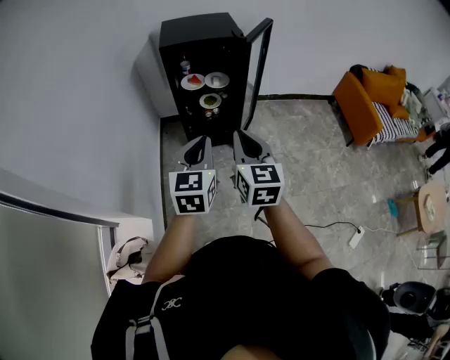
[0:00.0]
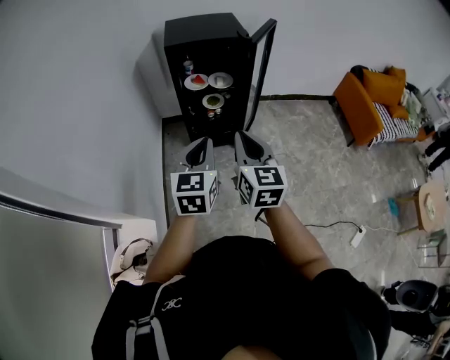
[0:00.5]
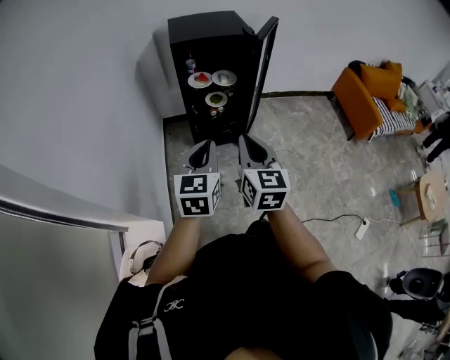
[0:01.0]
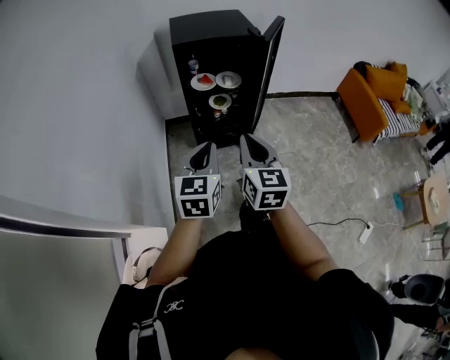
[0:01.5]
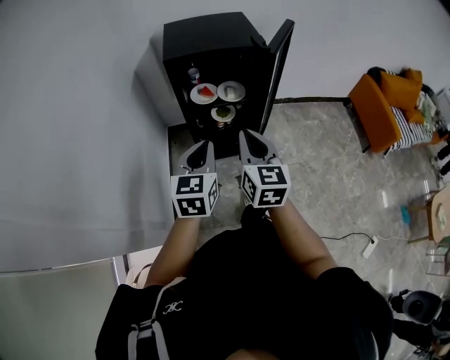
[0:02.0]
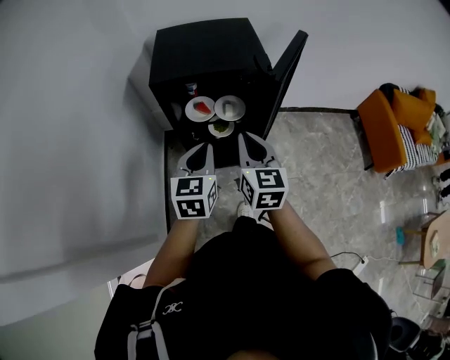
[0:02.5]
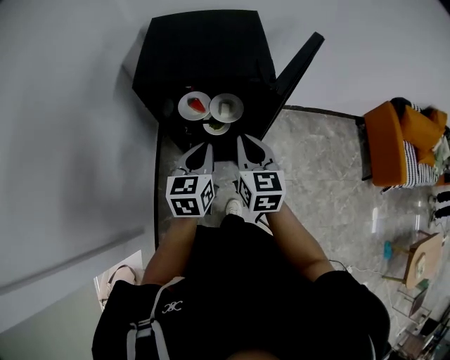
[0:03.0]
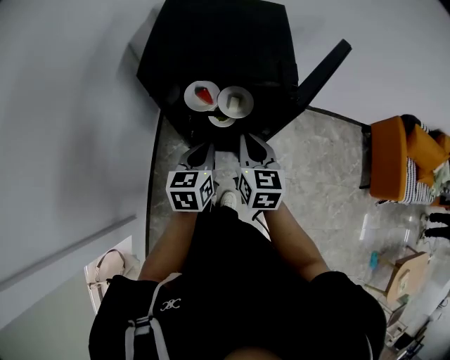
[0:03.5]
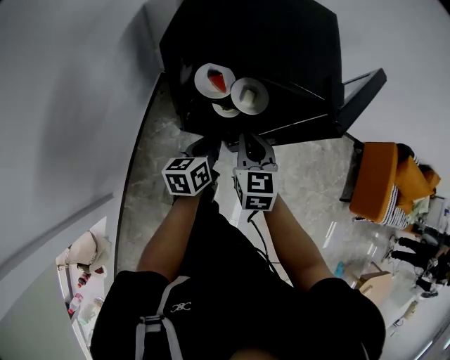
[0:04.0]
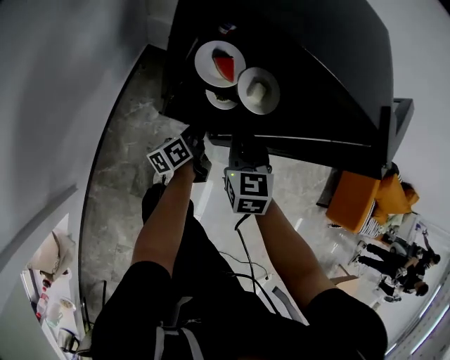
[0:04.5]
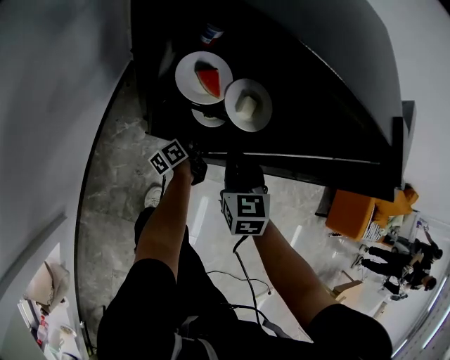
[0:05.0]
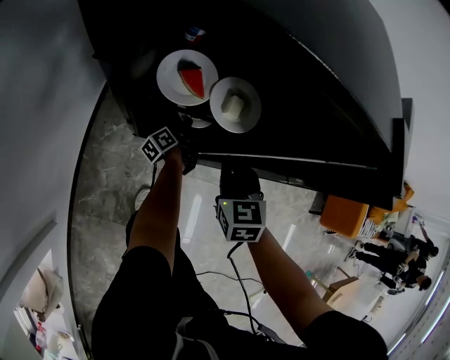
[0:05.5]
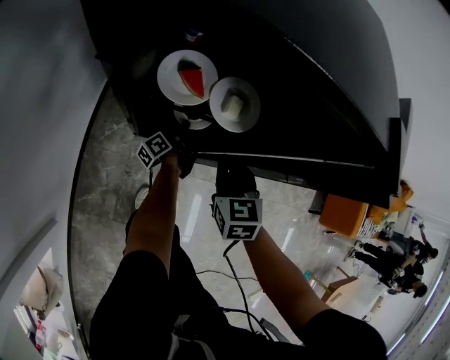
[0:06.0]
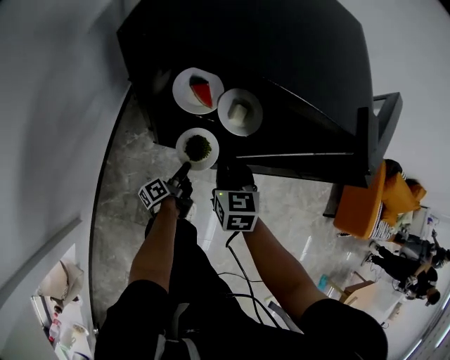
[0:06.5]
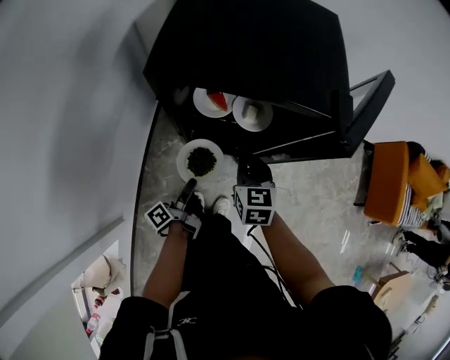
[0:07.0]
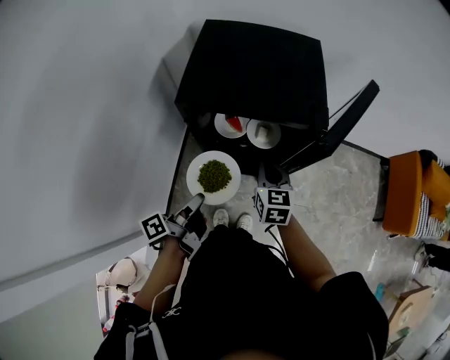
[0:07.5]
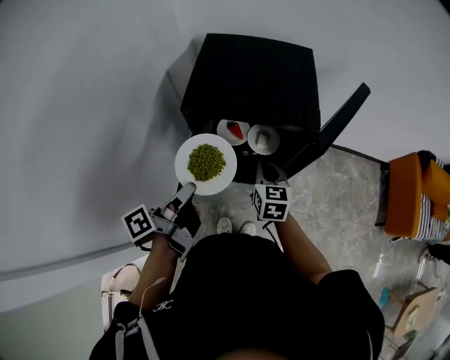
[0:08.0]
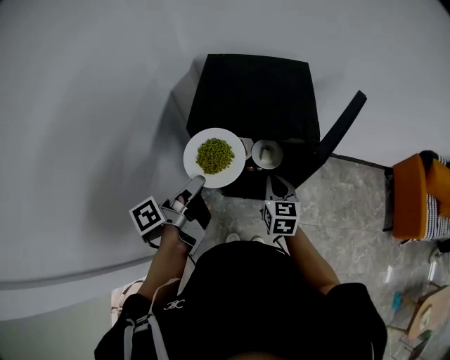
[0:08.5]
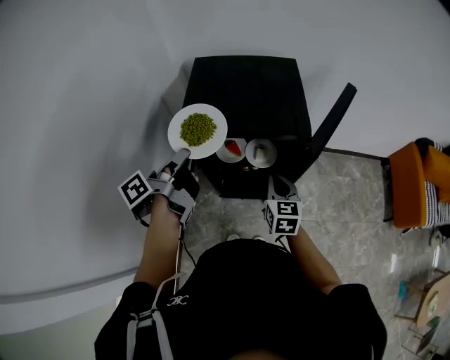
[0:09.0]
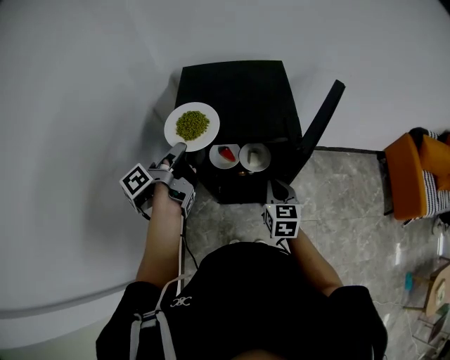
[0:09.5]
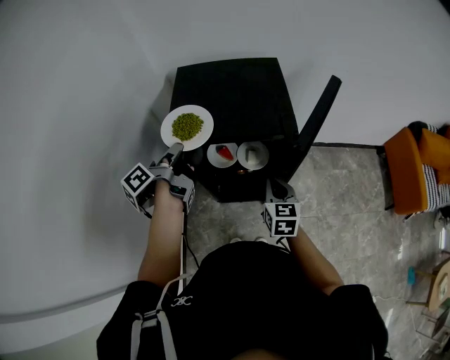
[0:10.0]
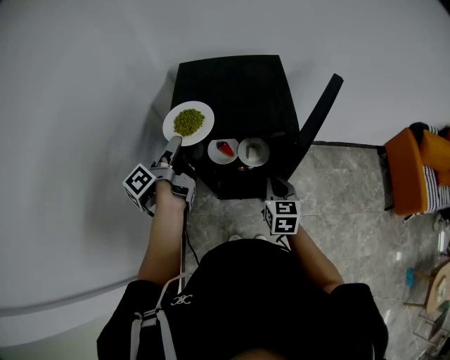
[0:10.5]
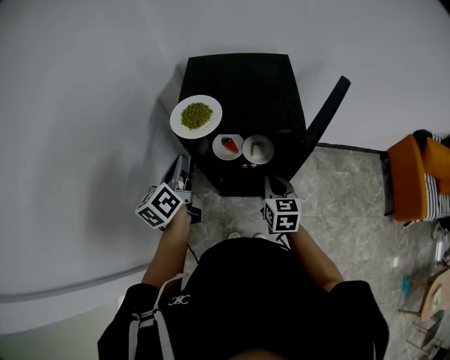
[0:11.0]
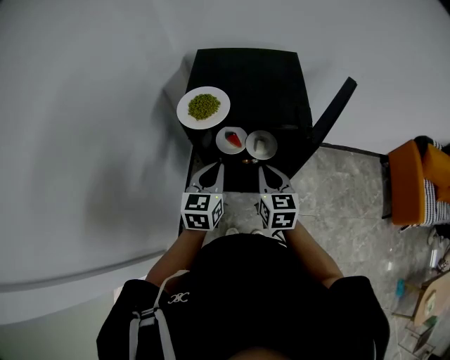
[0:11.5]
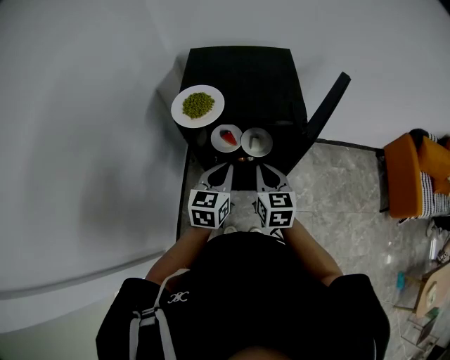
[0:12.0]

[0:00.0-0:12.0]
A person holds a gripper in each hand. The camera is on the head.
0:00.0 to 0:02.0: The grippers both shift forward by roughly 15 cm.
0:02.0 to 0:04.0: Both grippers move forward and downward, about 30 cm. The right gripper turns by approximately 30 degrees; the left gripper rotates around the line of its fingers by about 40 degrees, counterclockwise from behind.
0:04.0 to 0:06.0: The left gripper moves downward and forward, roughly 35 cm, rotates around the line of its fingers by some 50 degrees, counterclockwise from behind, and opens, then closes again. Meanwhile the right gripper goes about 15 cm downward.
0:06.0 to 0:08.0: The left gripper heads upward and backward, covering some 60 cm, while the right gripper is displaced upward by approximately 20 cm.
0:08.0 to 0:10.0: The left gripper heads forward, covering some 15 cm. The right gripper moves to the right, roughly 5 cm.
0:10.0 to 0:12.0: The right gripper moves to the left, approximately 5 cm. Meanwhile the left gripper goes some 15 cm to the right, backward and downward, rolls clockwise, seen from behind, by some 80 degrees, and opens, then closes again.

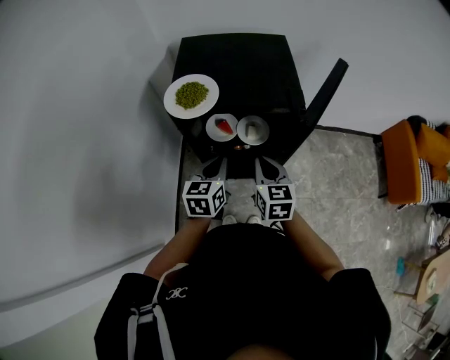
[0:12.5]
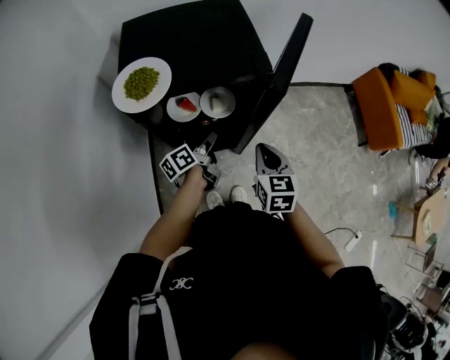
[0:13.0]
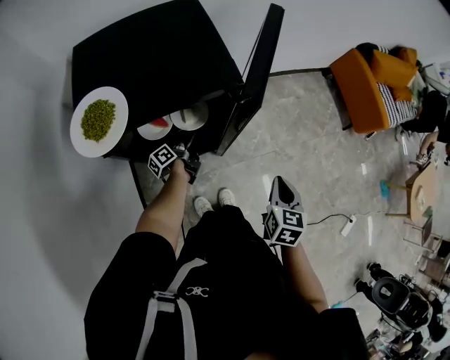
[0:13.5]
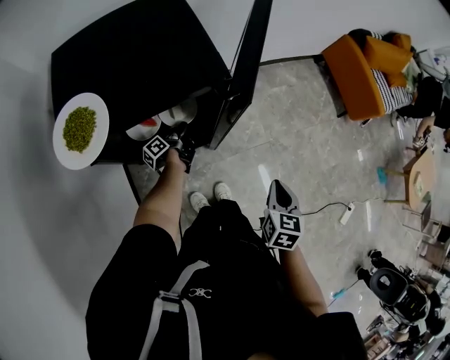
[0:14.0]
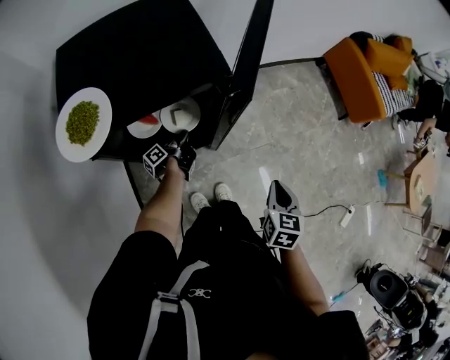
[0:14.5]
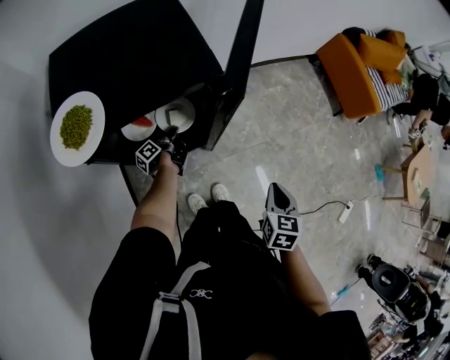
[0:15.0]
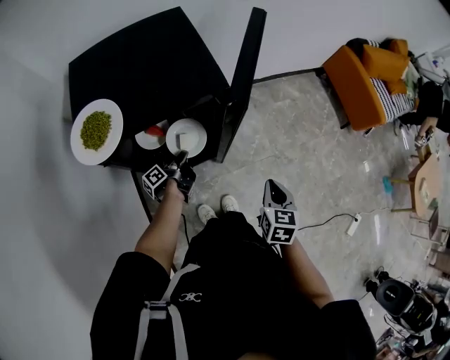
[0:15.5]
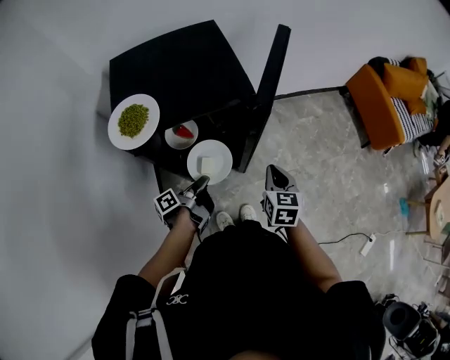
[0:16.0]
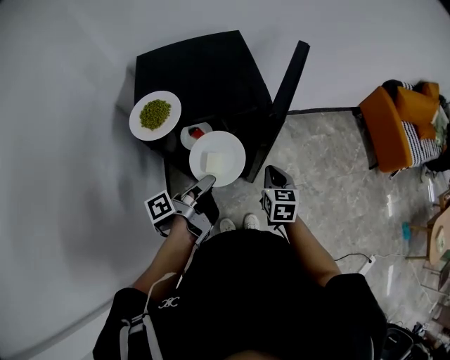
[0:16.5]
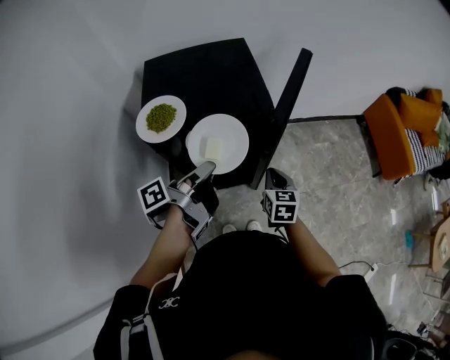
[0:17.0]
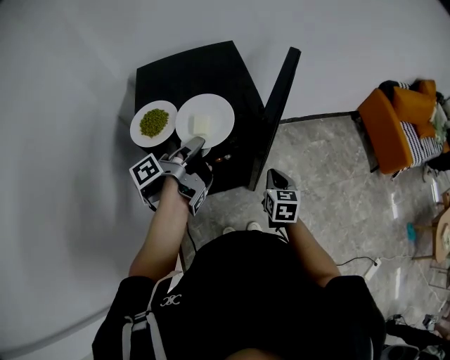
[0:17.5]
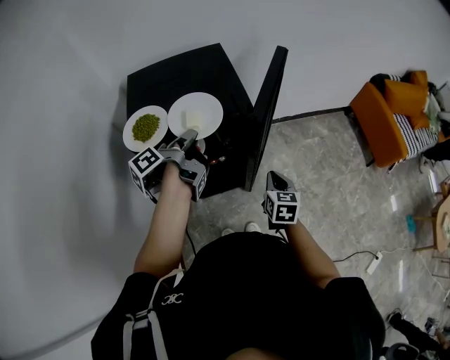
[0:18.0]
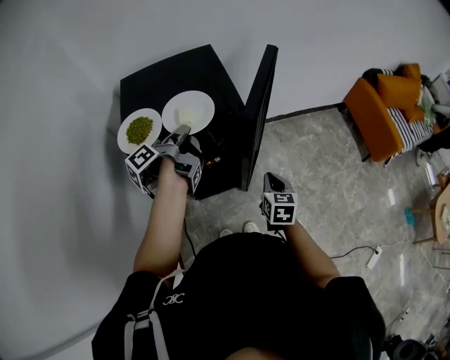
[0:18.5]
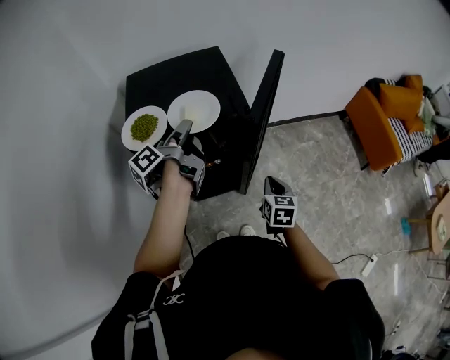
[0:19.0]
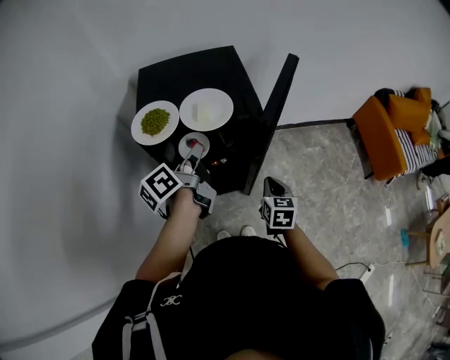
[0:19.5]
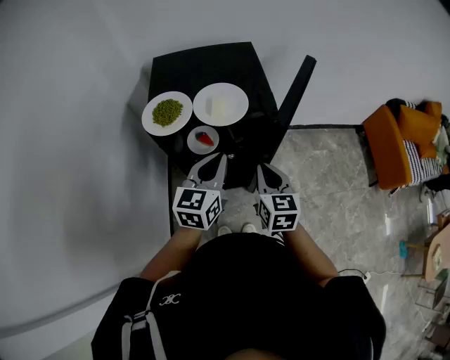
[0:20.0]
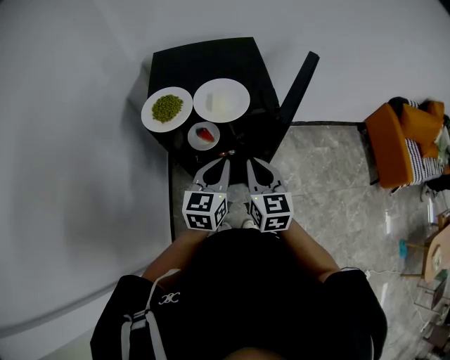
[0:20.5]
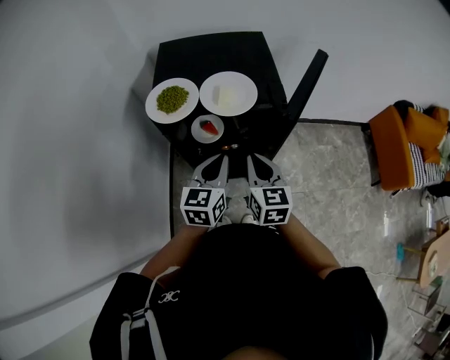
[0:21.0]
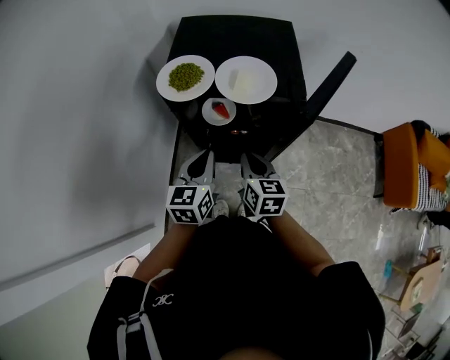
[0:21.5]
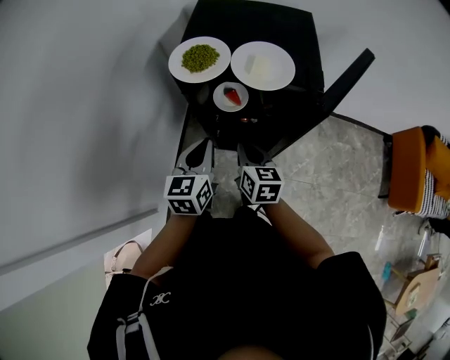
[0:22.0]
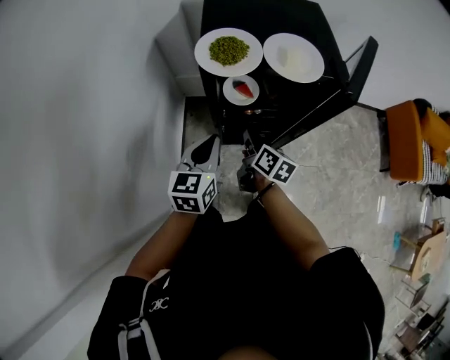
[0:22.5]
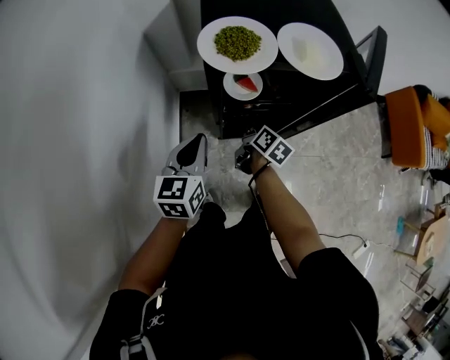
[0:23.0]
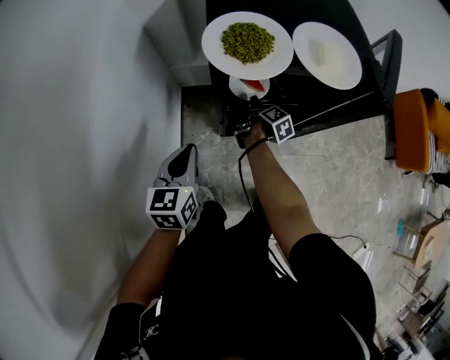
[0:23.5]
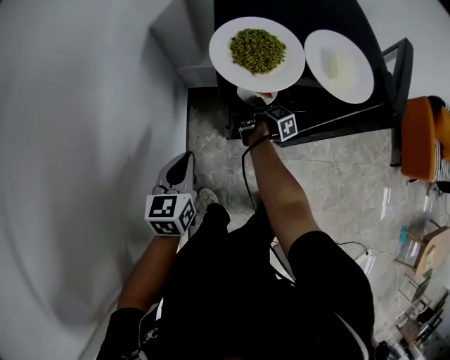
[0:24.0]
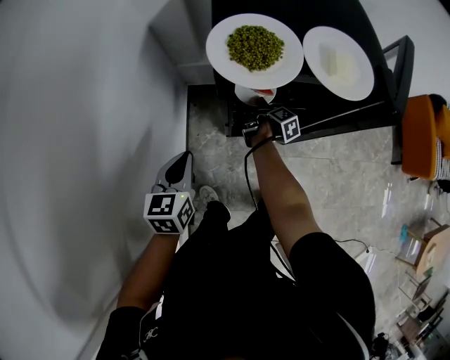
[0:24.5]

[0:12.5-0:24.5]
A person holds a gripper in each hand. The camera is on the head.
0:12.5 to 0:14.5: The right gripper moves roughly 25 cm, and changes its angle by about 40 degrees; the left gripper shifts roughly 30 cm downward, rotates around the line of its fingers by roughly 80 degrees, counterclockwise from behind, and opens and closes again.
0:14.5 to 0:16.5: The right gripper heads to the left and forward, covering approximately 15 cm, and turns by approximately 20 degrees, while the left gripper moves upward and backward, approximately 35 cm.
0:16.5 to 0:18.5: The left gripper moves forward and upward, approximately 15 cm, while the right gripper travels to the right by about 5 cm.
0:18.5 to 0:20.5: The right gripper travels to the left and upward by some 15 cm, and turns by roughly 30 degrees; the left gripper heads backward, covering about 10 cm, rotates around the line of its fingers by roughly 80 degrees, clockwise from behind, and opens and closes again.
0:20.5 to 0:22.5: The left gripper travels to the left by about 20 cm. The right gripper travels downward and to the left by roughly 20 cm, and rolls clockwise, seen from behind, by some 40 degrees.
0:22.5 to 0:24.5: The left gripper goes approximately 15 cm to the left and downward. Meanwhile the right gripper moves downward and forward, approximately 25 cm, rolls clockwise, seen from behind, by roughly 40 degrees, and opens up.

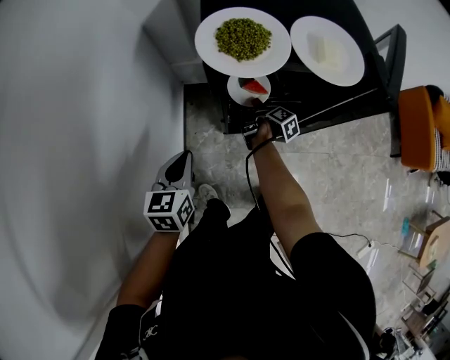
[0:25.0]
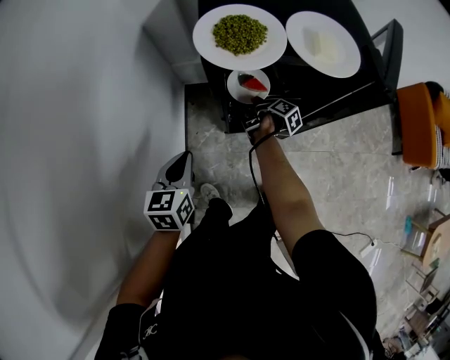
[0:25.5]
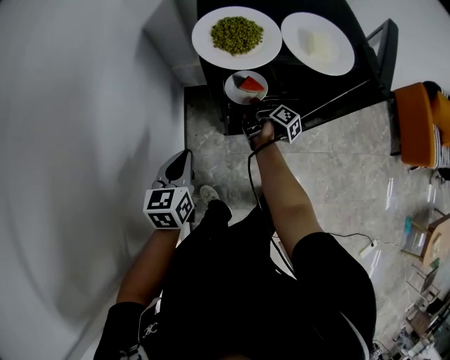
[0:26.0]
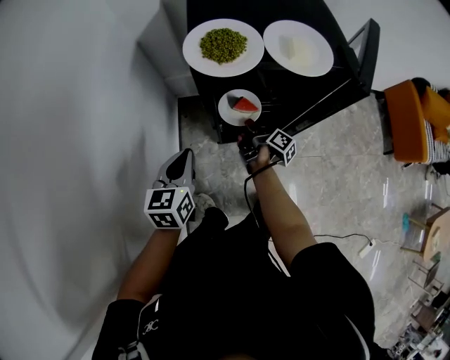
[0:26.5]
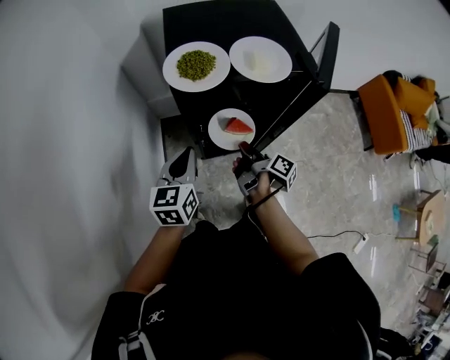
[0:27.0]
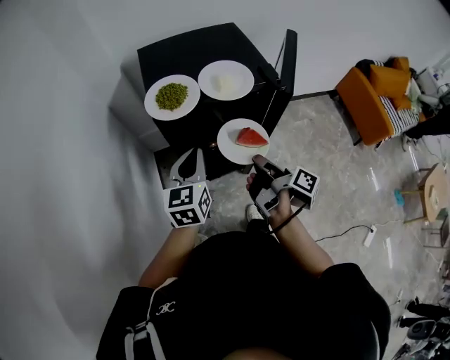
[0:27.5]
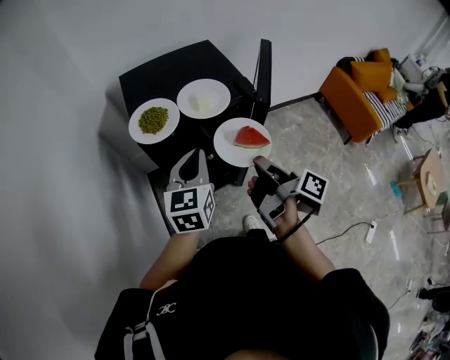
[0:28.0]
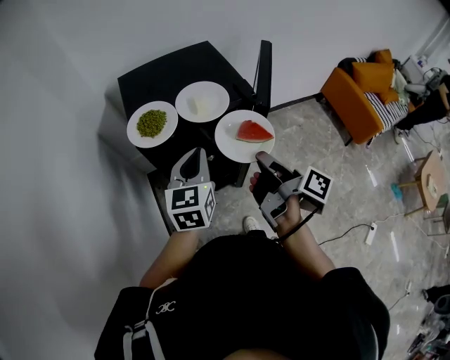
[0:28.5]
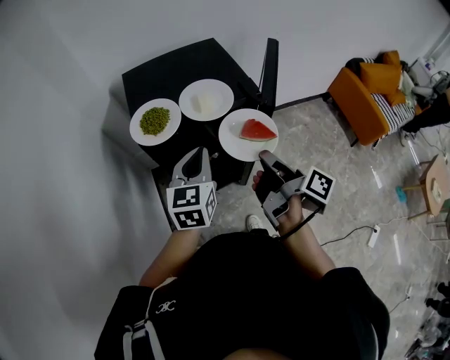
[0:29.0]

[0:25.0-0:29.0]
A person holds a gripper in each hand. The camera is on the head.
0:25.0 to 0:27.0: The left gripper moves upward and to the right, about 10 cm, while the right gripper shifts approximately 20 cm upward and backward, turns by some 20 degrees, and closes.
0:27.0 to 0:29.0: The right gripper is displaced upward and to the right by some 25 cm; the left gripper is displaced to the right and upward by approximately 15 cm.
